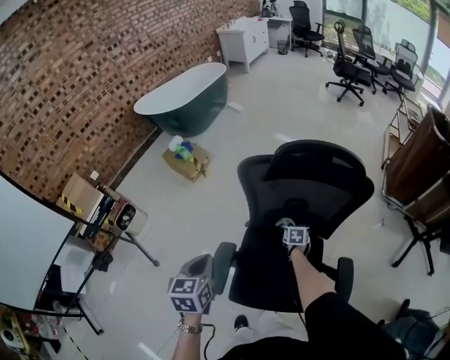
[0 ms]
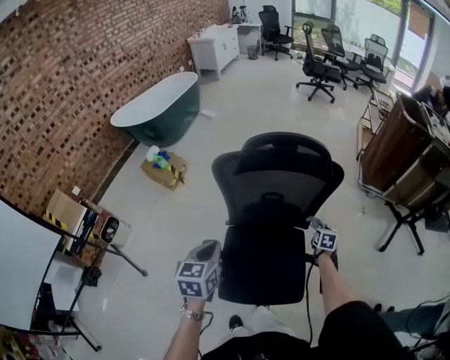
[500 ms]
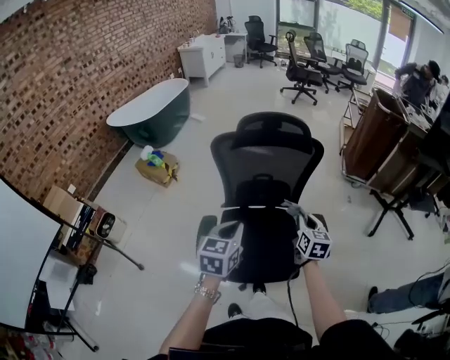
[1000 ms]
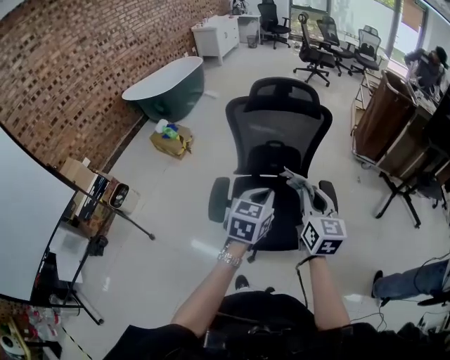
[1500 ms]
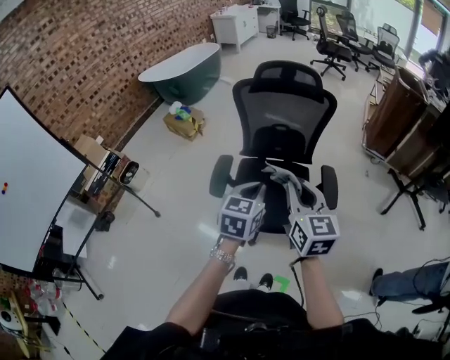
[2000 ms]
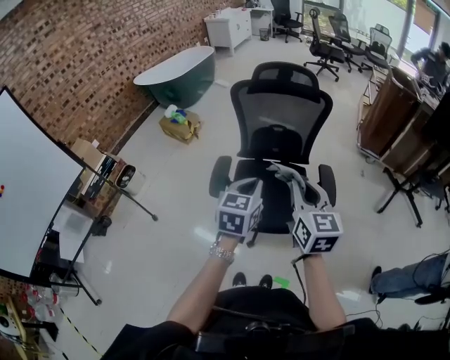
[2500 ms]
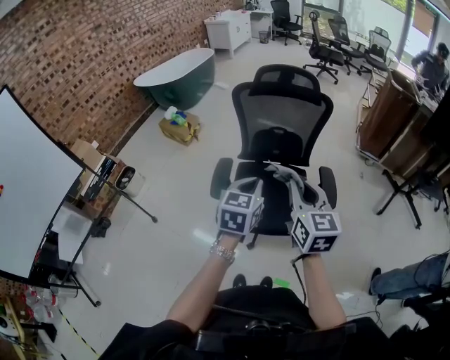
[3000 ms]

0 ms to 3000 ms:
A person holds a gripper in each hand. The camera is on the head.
0 ms to 1500 ms: The right gripper travels upward and backward by approximately 50 cm, and tips its fingers upward by roughly 50 degrees. The left gripper goes approximately 25 cm to the right and backward, and rotates some 30 degrees.
1500 ms to 3000 ms: Both grippers move backward, some 5 cm.

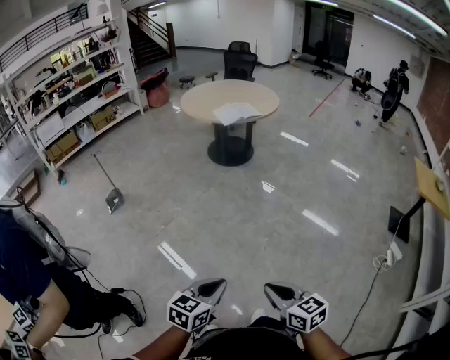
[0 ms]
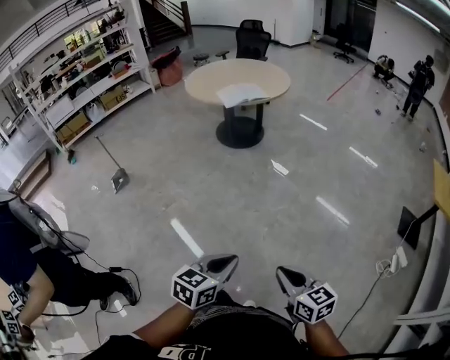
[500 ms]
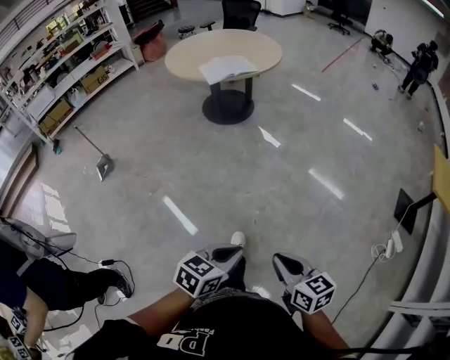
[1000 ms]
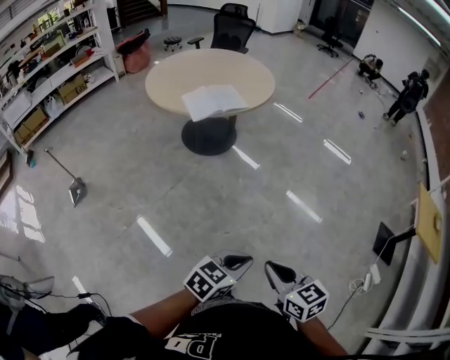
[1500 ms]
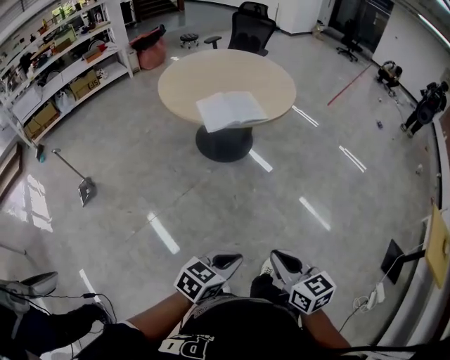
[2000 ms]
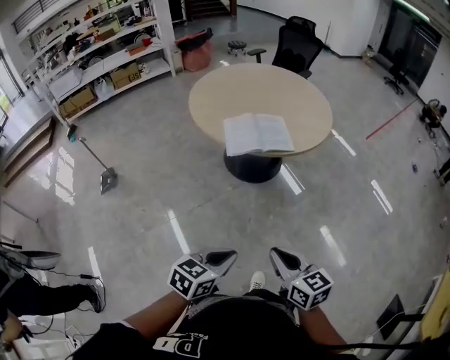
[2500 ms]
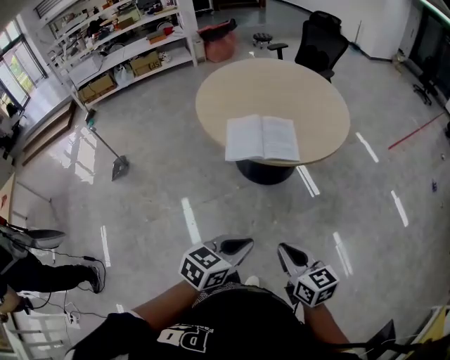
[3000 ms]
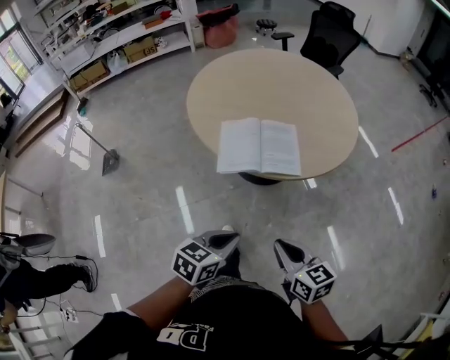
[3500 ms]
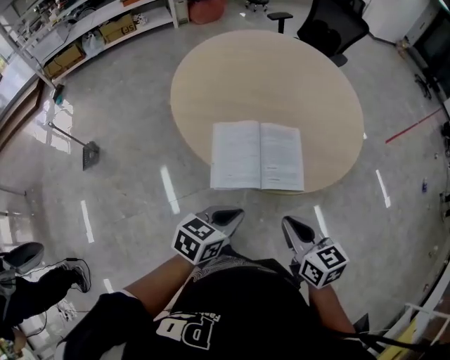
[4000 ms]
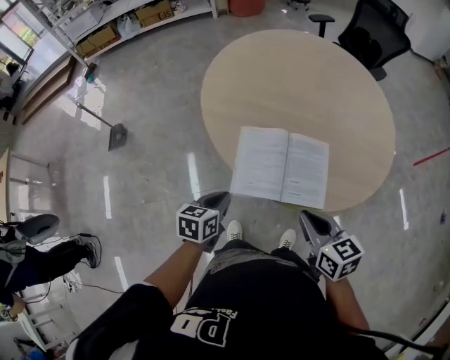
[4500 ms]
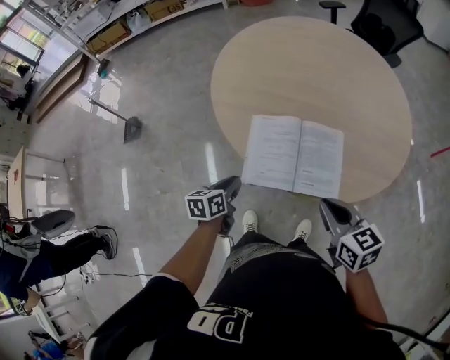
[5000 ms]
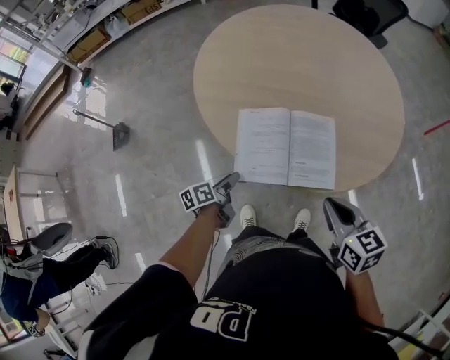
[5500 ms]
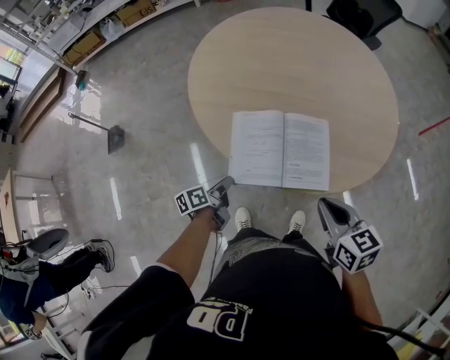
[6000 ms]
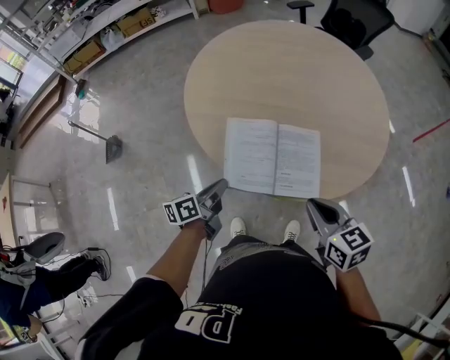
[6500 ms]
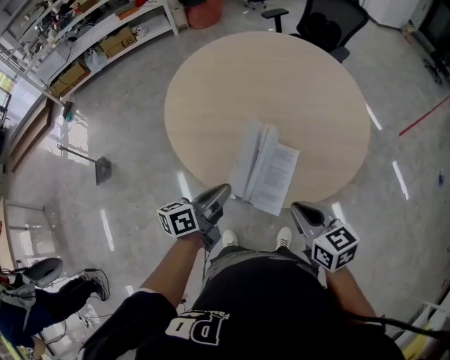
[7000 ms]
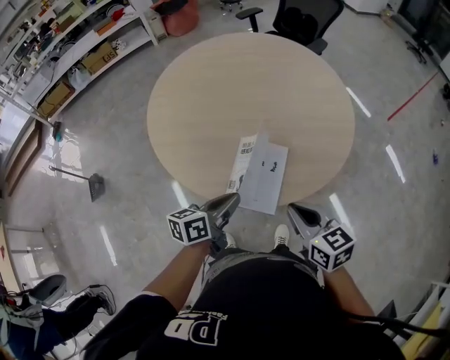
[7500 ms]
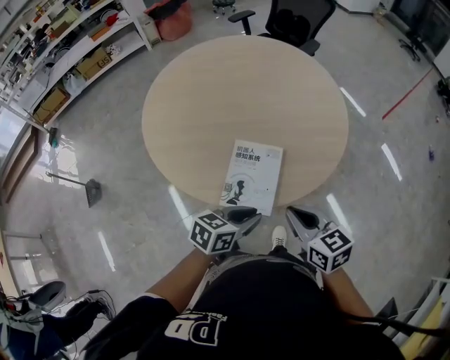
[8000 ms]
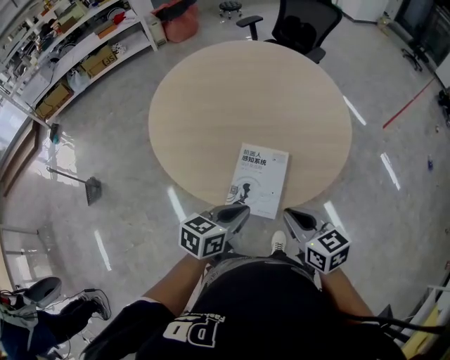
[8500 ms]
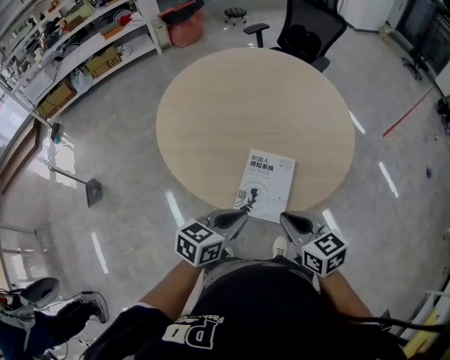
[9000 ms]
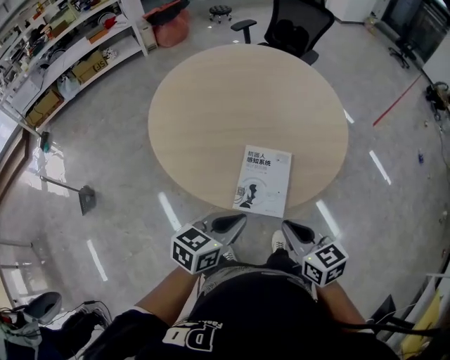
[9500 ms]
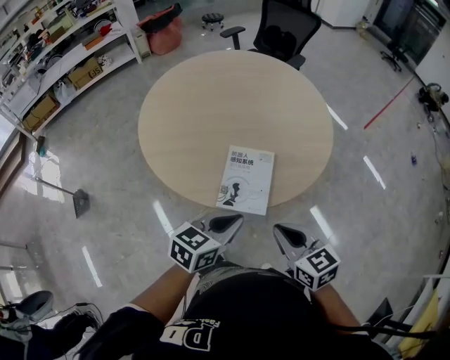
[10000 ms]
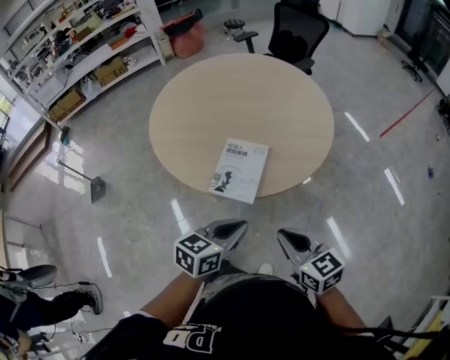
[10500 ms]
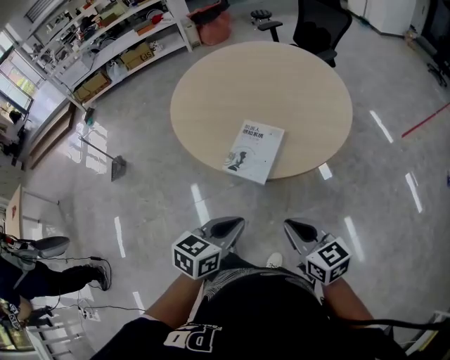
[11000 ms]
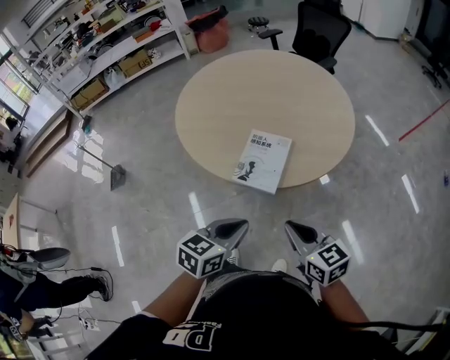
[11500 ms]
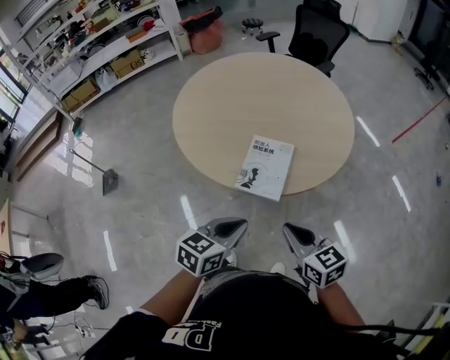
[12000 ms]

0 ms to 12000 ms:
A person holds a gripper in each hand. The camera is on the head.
0 ms to 2000 ms: Both grippers are carried forward, about 60 cm.
2000 ms to 4000 ms: The pair of grippers is taken roughly 60 cm. The left gripper turns by approximately 30 degrees.
4000 ms to 6000 ms: The left gripper is displaced downward, forward and to the left by approximately 25 cm, rolls counterclockwise, seen from behind, by approximately 50 degrees, and opens, then closes once more. Meanwhile the right gripper goes roughly 10 cm forward and to the right.
6000 ms to 8000 ms: The left gripper heads to the right and upward, covering roughly 30 cm, and rolls clockwise, seen from behind, by about 50 degrees.
8000 ms to 10000 ms: The left gripper goes roughly 5 cm upward. Meanwhile the right gripper travels backward by approximately 5 cm.
10000 ms to 12000 ms: Both grippers travel together backward, approximately 10 cm.

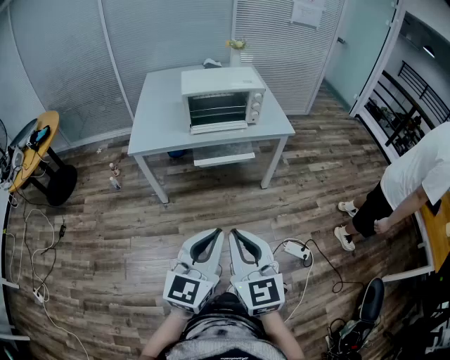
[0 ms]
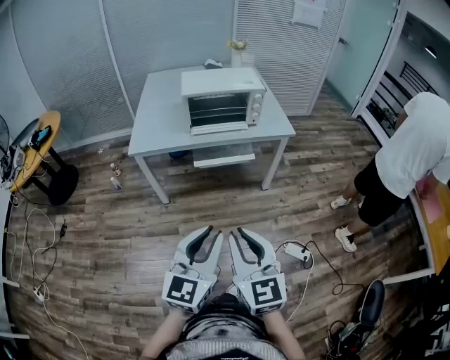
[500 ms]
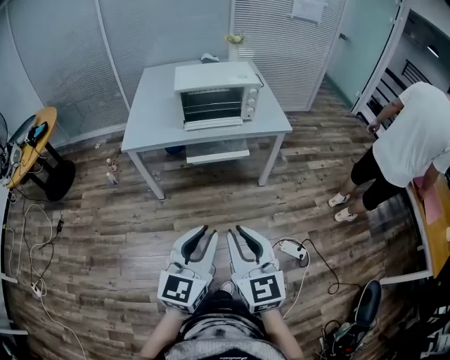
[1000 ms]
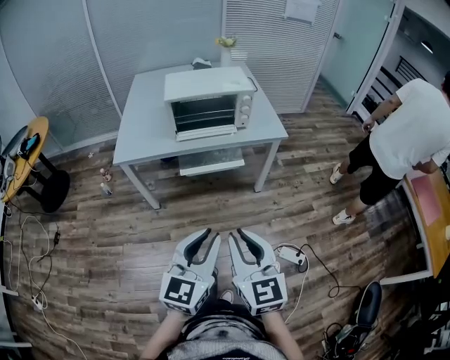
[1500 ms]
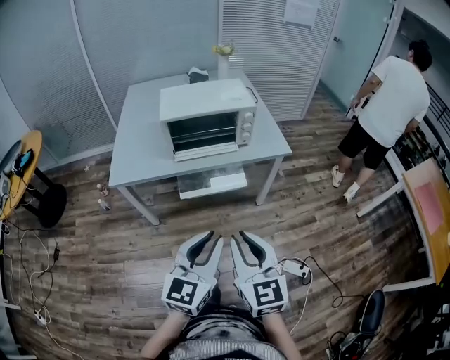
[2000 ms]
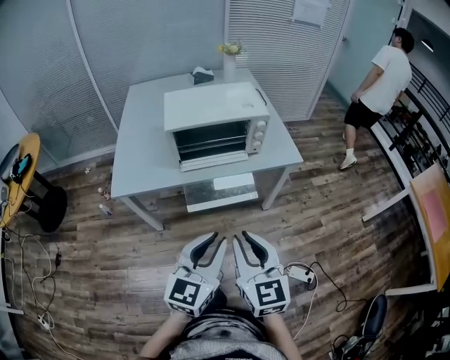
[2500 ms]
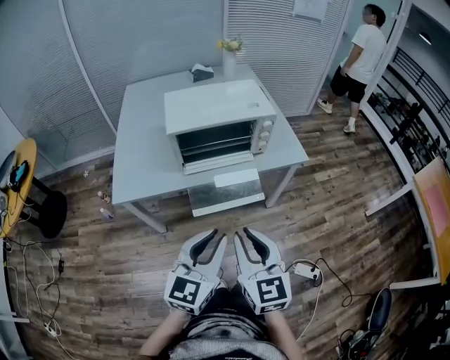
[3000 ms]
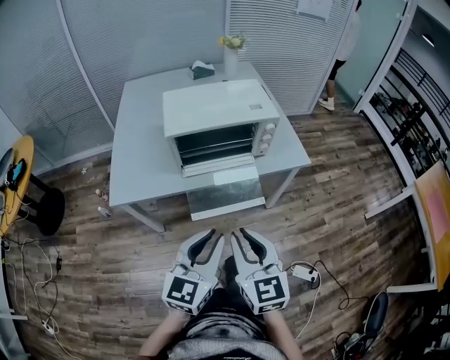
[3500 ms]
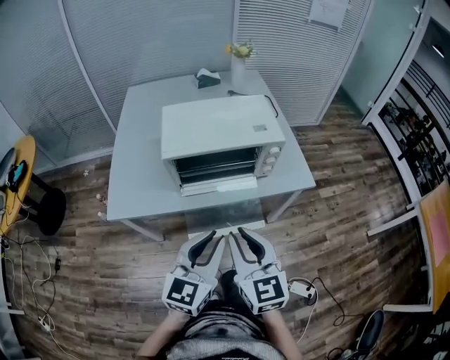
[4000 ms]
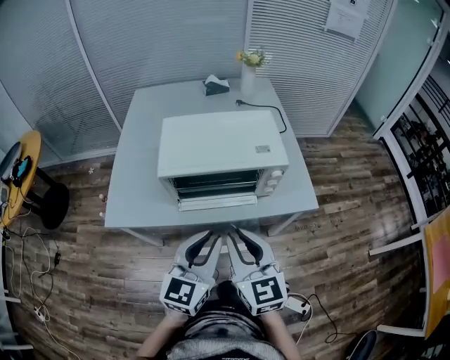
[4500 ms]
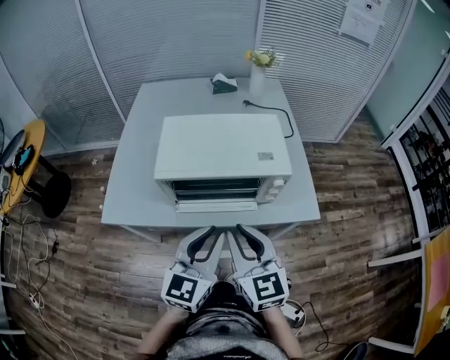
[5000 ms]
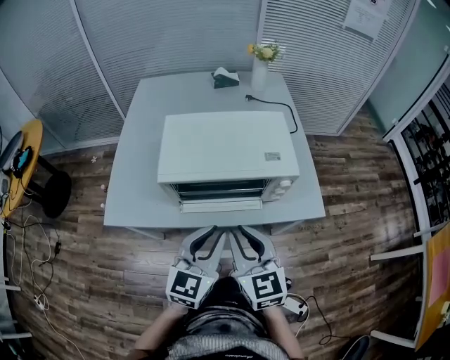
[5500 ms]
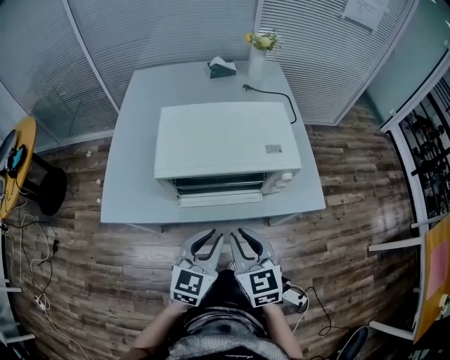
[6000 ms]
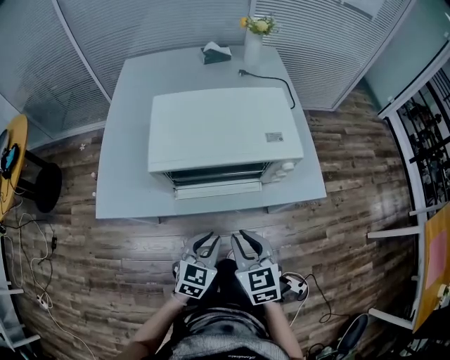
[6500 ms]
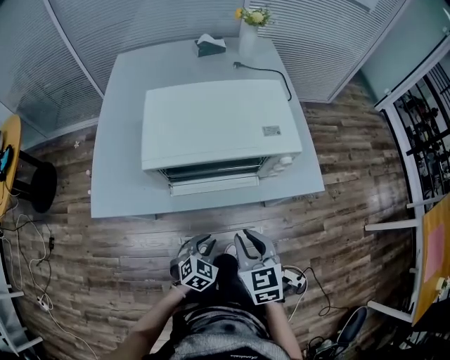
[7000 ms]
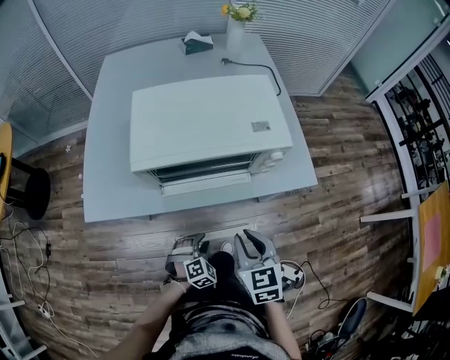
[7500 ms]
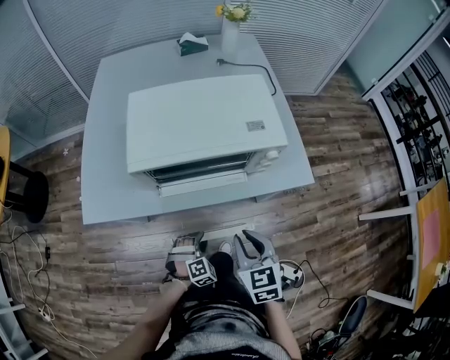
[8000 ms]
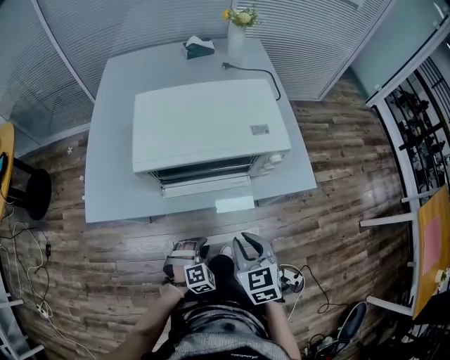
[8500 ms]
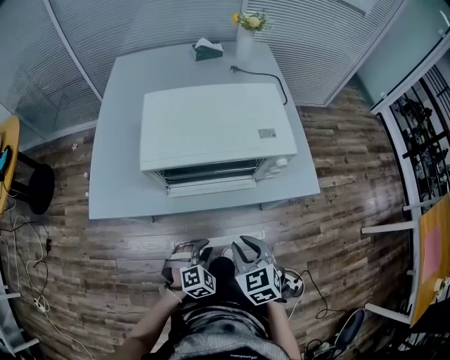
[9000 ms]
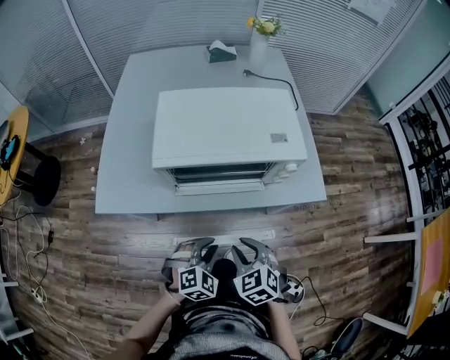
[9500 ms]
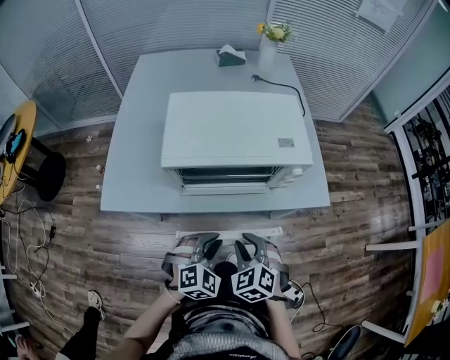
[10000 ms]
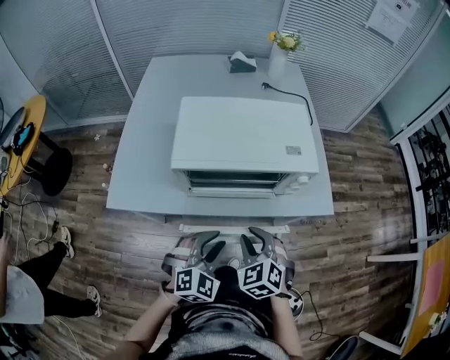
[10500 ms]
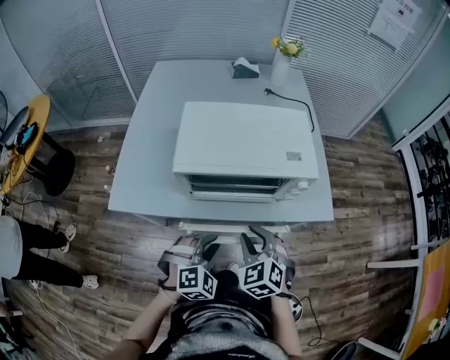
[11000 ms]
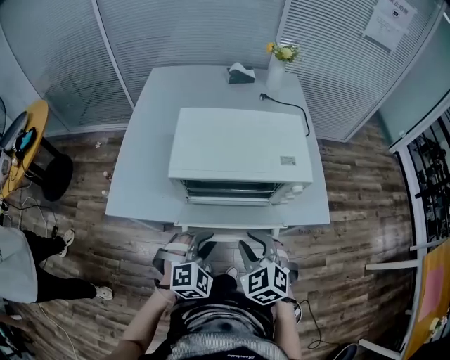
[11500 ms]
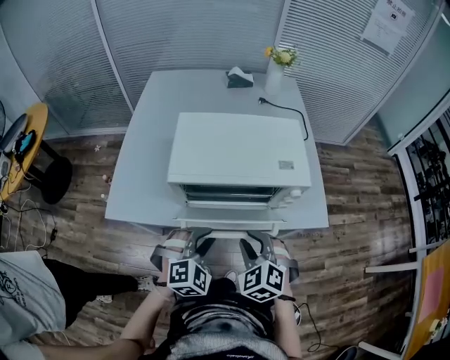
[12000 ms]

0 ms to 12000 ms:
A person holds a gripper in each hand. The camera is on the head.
0 ms to 2000 ms: Both grippers move forward, approximately 20 cm.
2000 ms to 4000 ms: Both grippers travel together forward, some 25 cm.
4000 ms to 6000 ms: Both grippers travel together forward and downward, roughly 15 cm.
6000 ms to 8000 ms: The right gripper shifts approximately 10 cm downward and to the right. Meanwhile the left gripper travels downward by roughly 30 cm, angles its fingers downward, by about 40 degrees, and opens its fingers.
8000 ms to 10000 ms: The right gripper goes roughly 5 cm to the left, and turns by about 40 degrees. Meanwhile the left gripper goes approximately 20 cm upward, and swivels about 20 degrees.
10000 ms to 12000 ms: Both grippers travel together upward and forward, about 10 cm.
